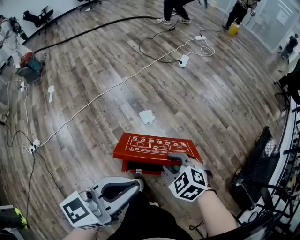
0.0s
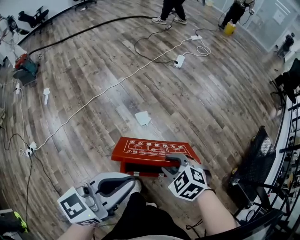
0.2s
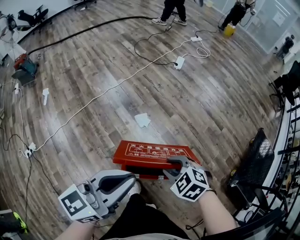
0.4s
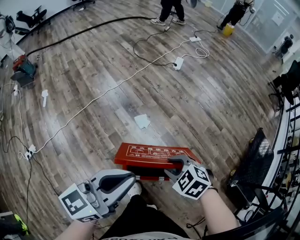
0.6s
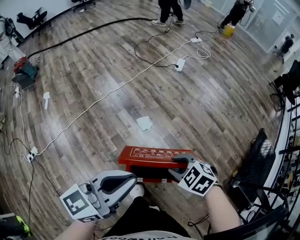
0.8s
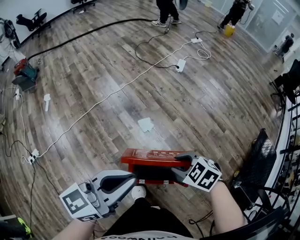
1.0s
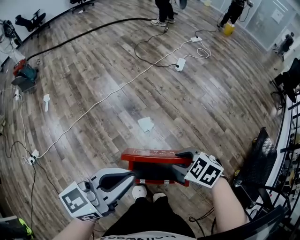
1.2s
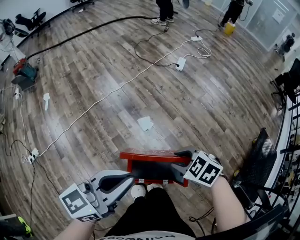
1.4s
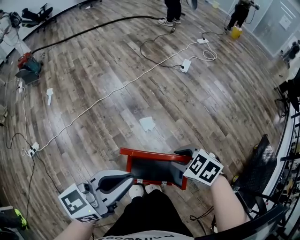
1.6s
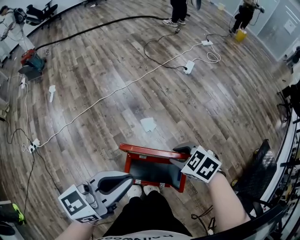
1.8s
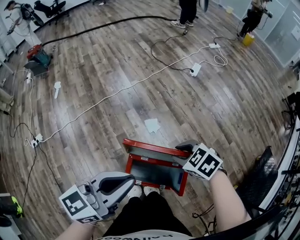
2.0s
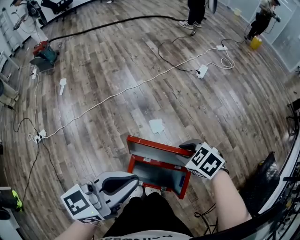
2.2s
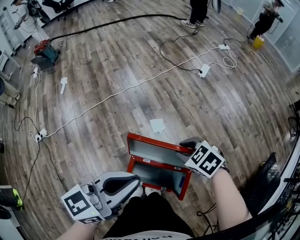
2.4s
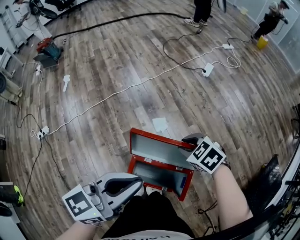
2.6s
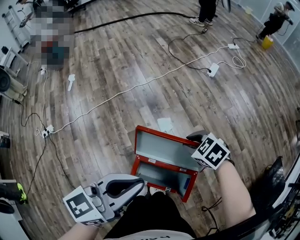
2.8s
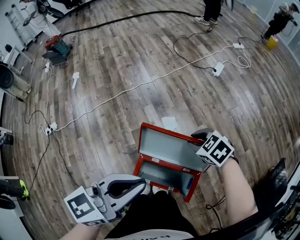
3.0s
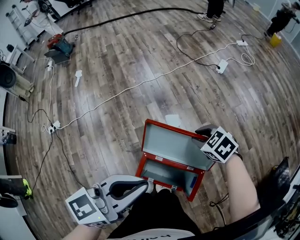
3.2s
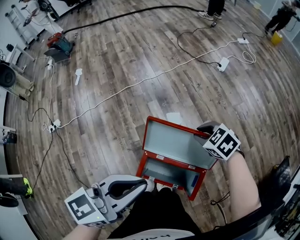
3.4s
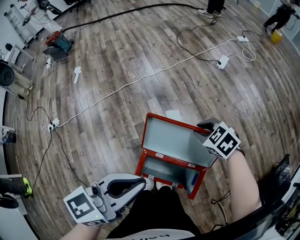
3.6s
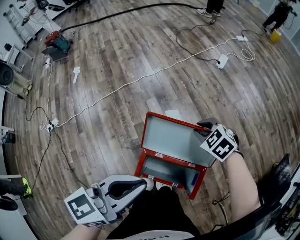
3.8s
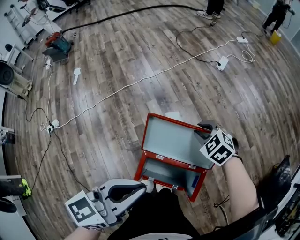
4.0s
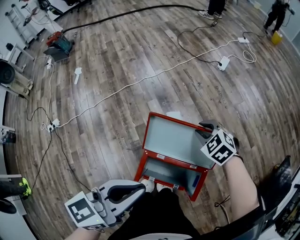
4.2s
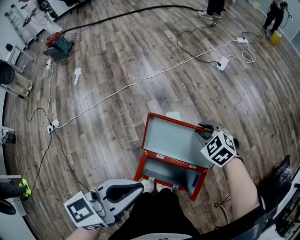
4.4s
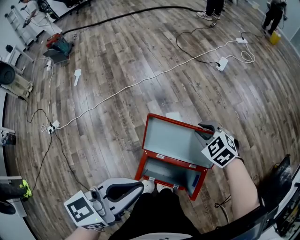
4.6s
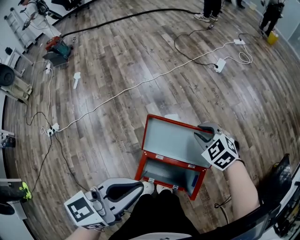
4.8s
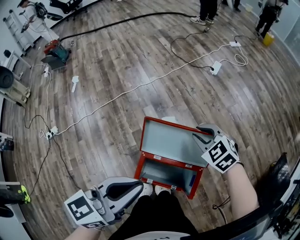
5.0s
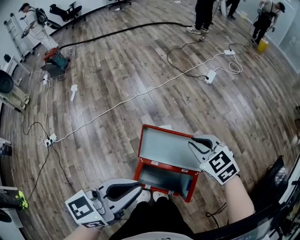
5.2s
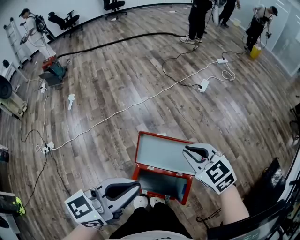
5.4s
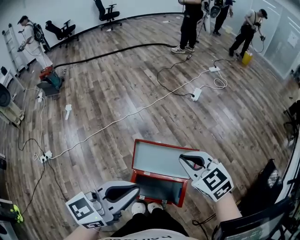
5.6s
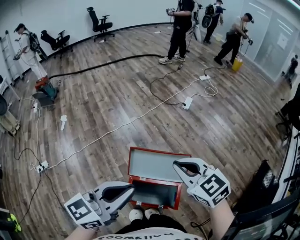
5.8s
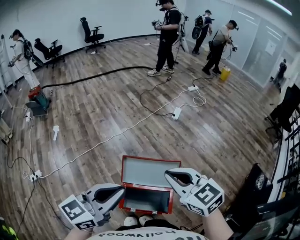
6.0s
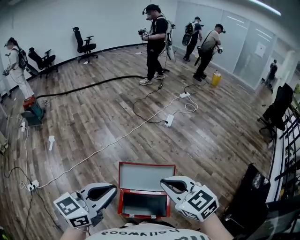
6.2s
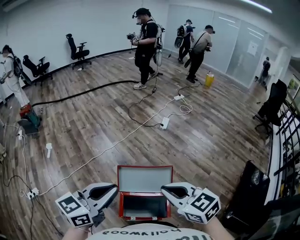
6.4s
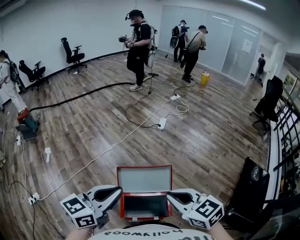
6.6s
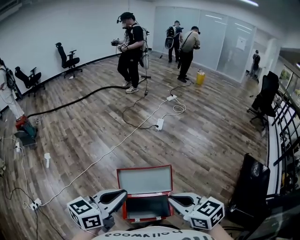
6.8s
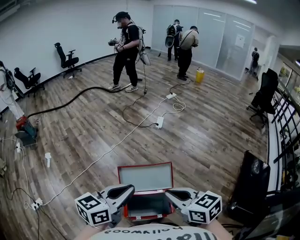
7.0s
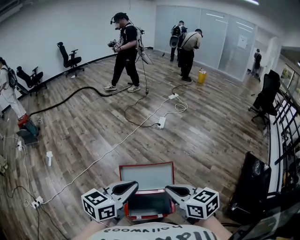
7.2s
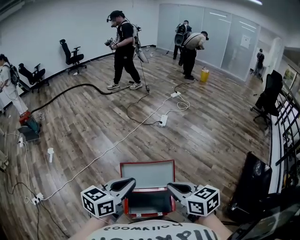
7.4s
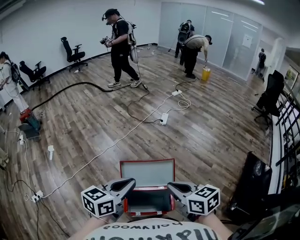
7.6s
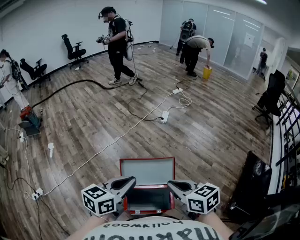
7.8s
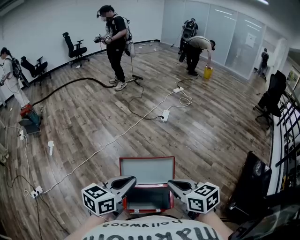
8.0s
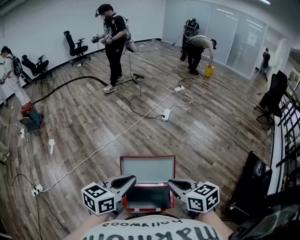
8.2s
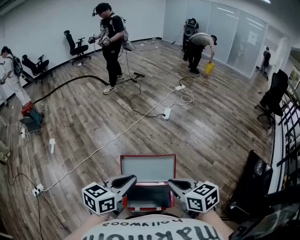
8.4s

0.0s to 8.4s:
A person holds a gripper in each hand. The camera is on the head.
0.0s to 1.4s: Both grippers move forward, some 10 cm.
1.4s to 2.8s: The right gripper goes roughly 15 cm forward.
2.8s to 4.2s: The left gripper shifts by some 5 cm; the right gripper moves about 5 cm.
4.2s to 5.6s: The left gripper travels upward by approximately 10 cm. The right gripper is displaced upward and backward by roughly 25 cm, and changes its angle by some 30 degrees.
5.6s to 7.0s: The right gripper shifts about 15 cm backward and upward, and swivels roughly 30 degrees.
7.0s to 8.4s: The right gripper changes place by approximately 5 cm.

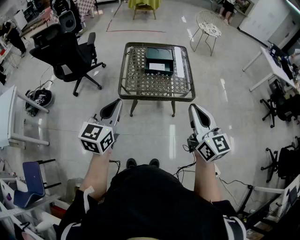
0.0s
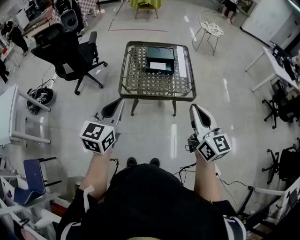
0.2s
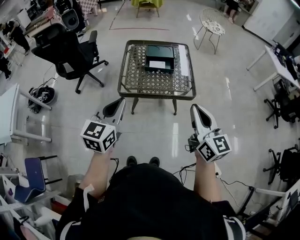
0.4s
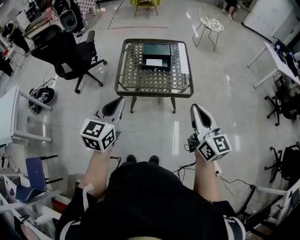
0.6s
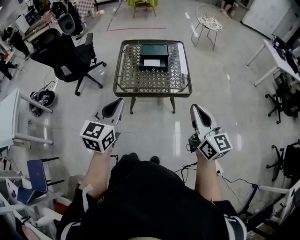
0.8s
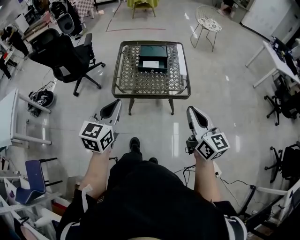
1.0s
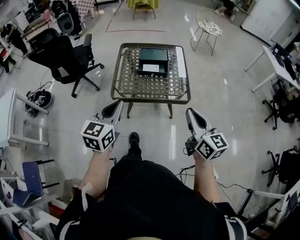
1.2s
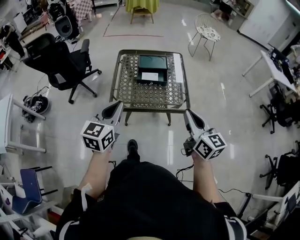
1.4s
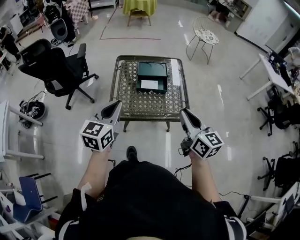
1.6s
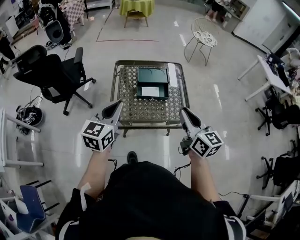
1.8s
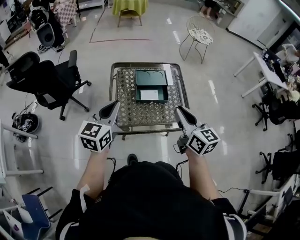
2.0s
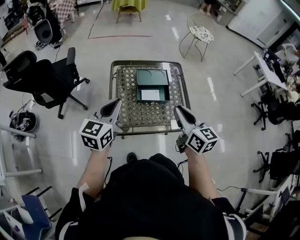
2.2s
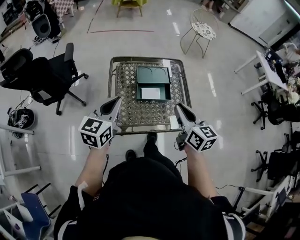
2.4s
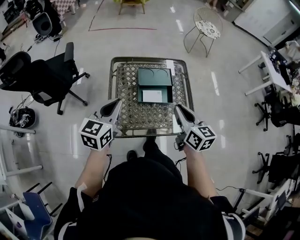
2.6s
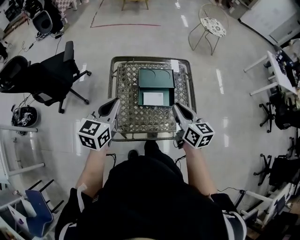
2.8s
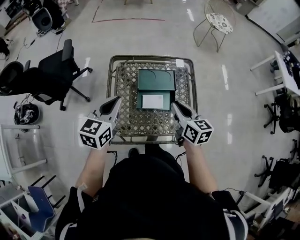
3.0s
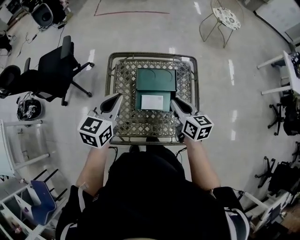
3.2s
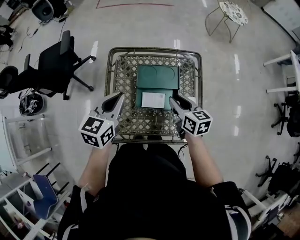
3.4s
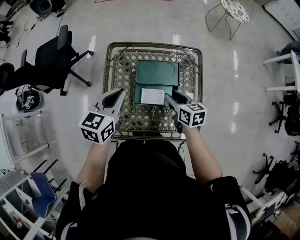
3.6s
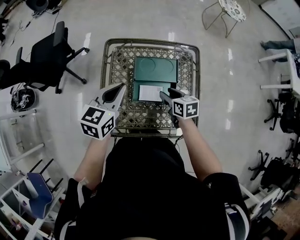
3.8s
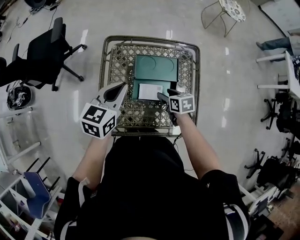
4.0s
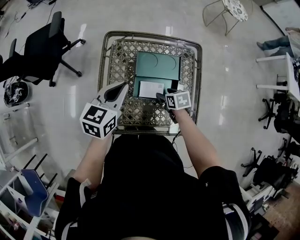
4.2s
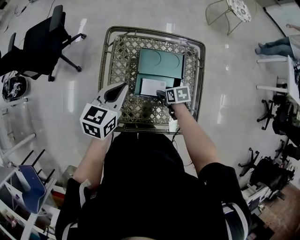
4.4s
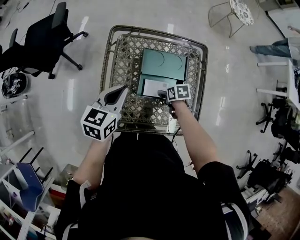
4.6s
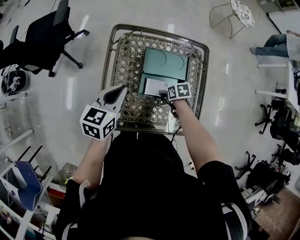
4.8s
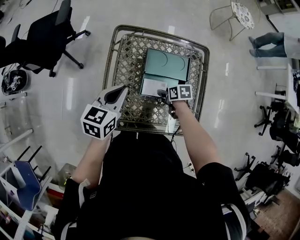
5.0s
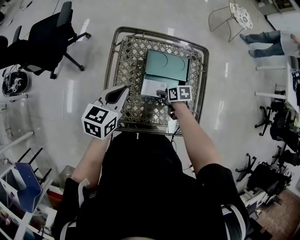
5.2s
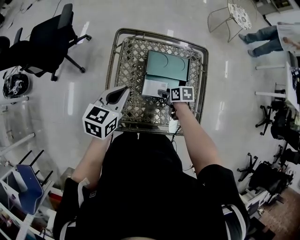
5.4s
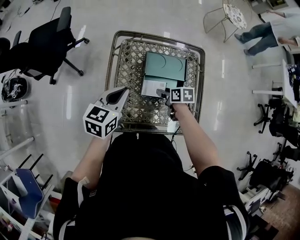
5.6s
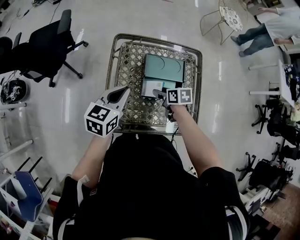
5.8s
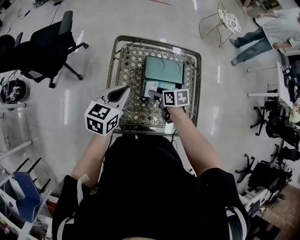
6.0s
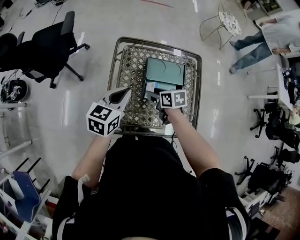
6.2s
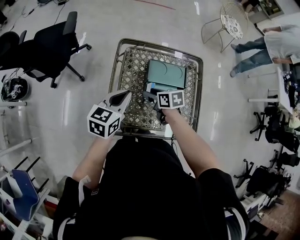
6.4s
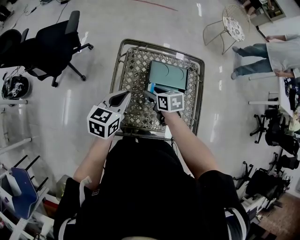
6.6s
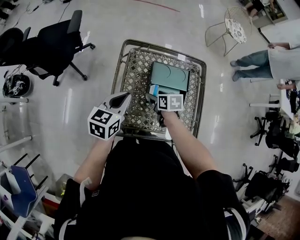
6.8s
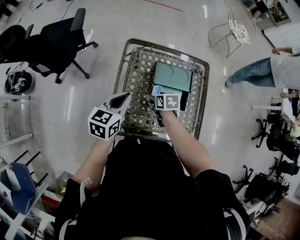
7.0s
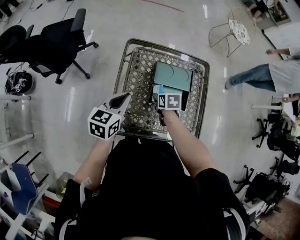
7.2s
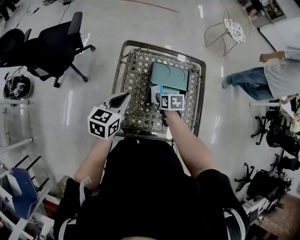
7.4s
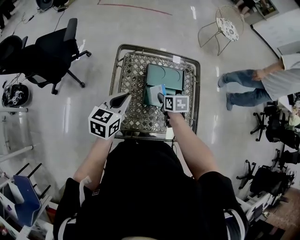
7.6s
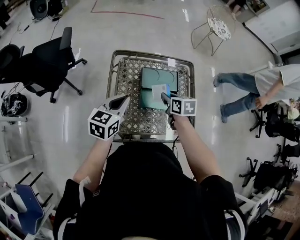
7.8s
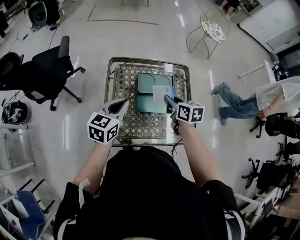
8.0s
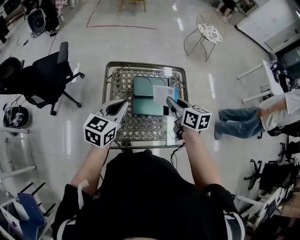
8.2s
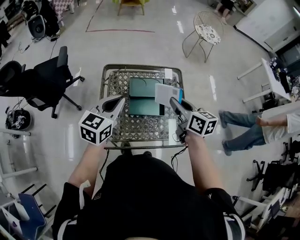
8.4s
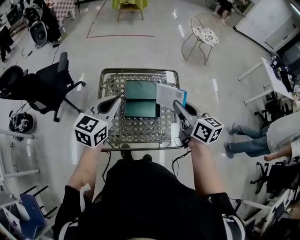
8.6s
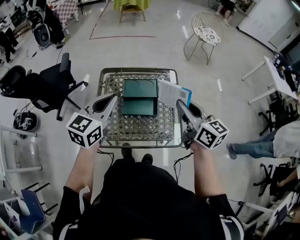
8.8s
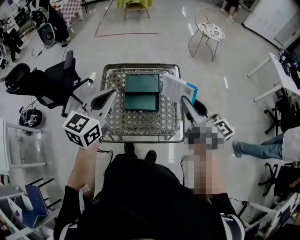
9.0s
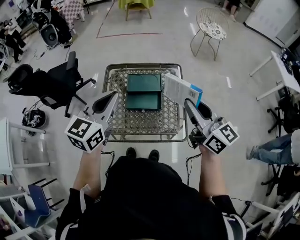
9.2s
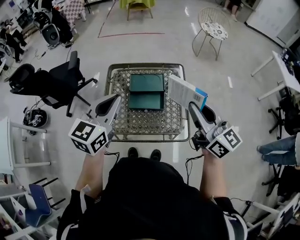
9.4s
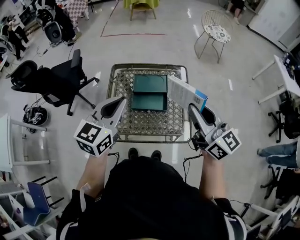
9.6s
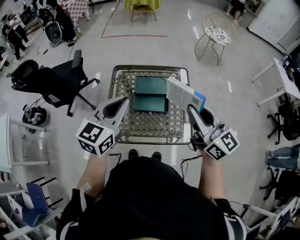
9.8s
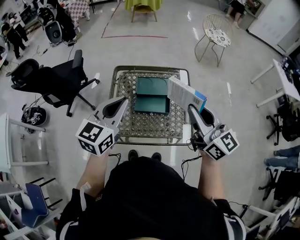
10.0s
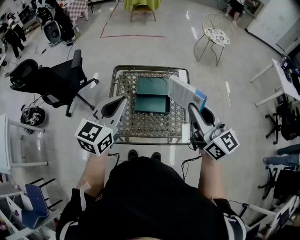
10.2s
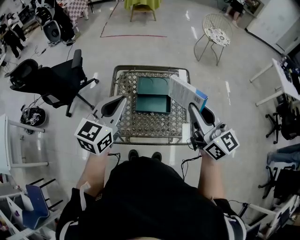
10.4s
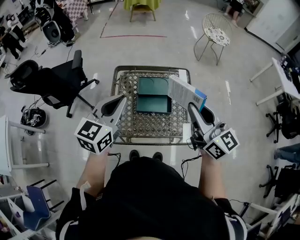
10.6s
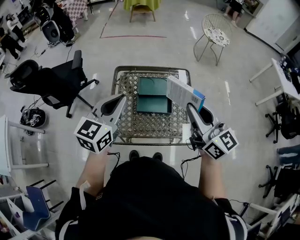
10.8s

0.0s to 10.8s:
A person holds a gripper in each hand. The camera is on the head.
0.0s to 1.6s: Both grippers move forward, roughly 15 cm.
1.6s to 3.0s: The right gripper goes some 30 cm forward and downward. The left gripper moves forward, some 25 cm.
3.0s to 4.6s: The right gripper moves downward, about 30 cm, points its fingers about 50 degrees further downward, and opens up. The left gripper goes some 10 cm downward.
4.6s to 6.2s: The right gripper travels upward and to the left by about 15 cm, and swivels some 20 degrees.
6.2s to 7.8s: The right gripper travels to the right and upward by roughly 10 cm, and closes up.
7.8s to 9.2s: The left gripper travels upward, to the right and backward by approximately 25 cm. The right gripper shifts approximately 40 cm upward, to the right and backward, and angles its fingers upward, by roughly 50 degrees.
9.2s to 10.8s: Both grippers travel together to the left, some 5 cm.

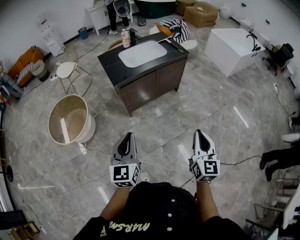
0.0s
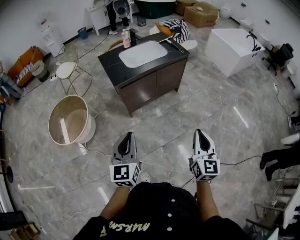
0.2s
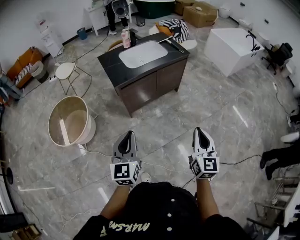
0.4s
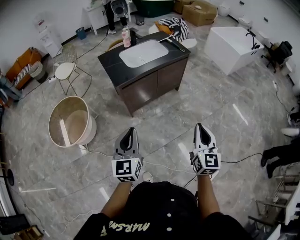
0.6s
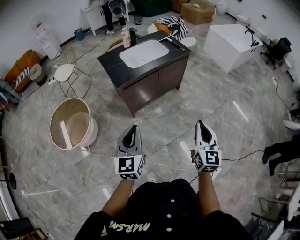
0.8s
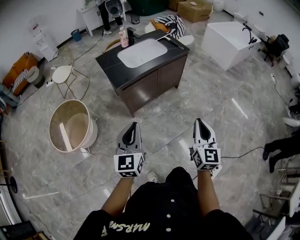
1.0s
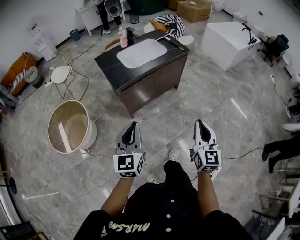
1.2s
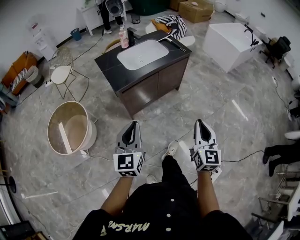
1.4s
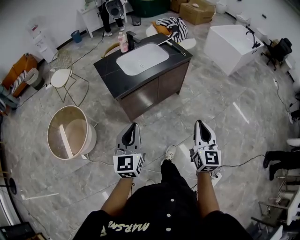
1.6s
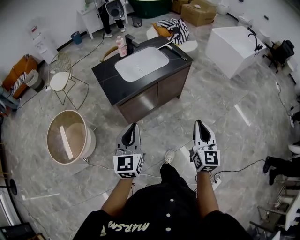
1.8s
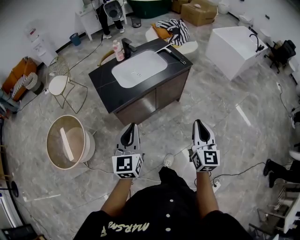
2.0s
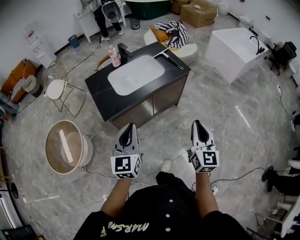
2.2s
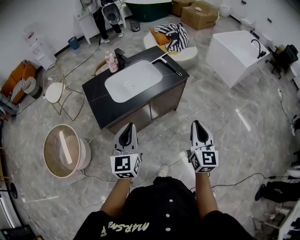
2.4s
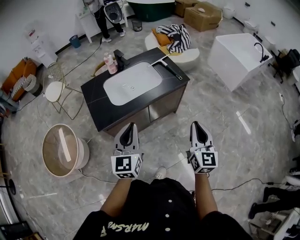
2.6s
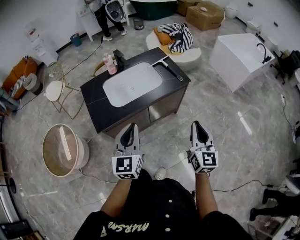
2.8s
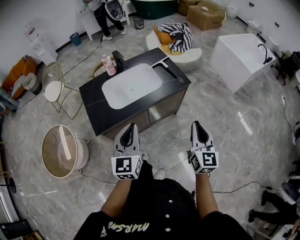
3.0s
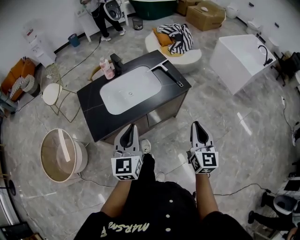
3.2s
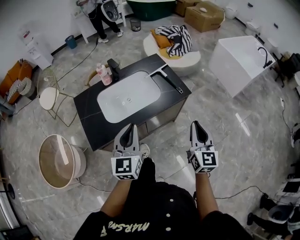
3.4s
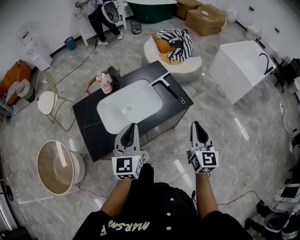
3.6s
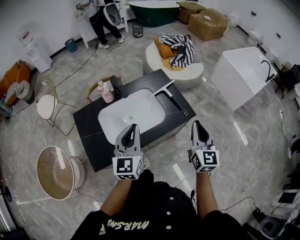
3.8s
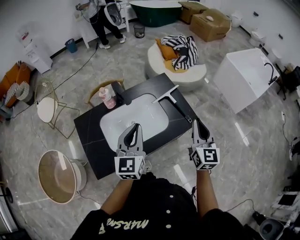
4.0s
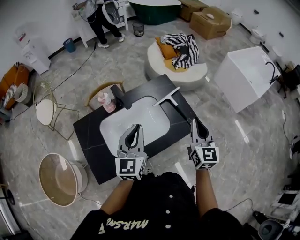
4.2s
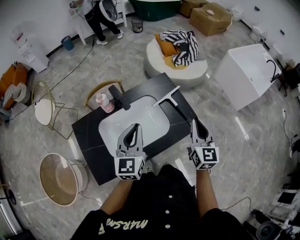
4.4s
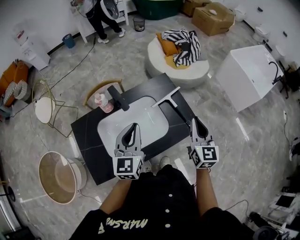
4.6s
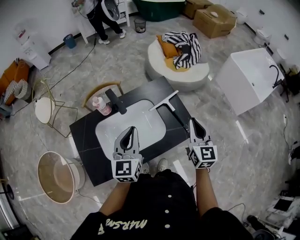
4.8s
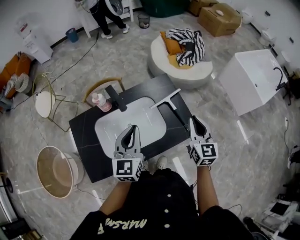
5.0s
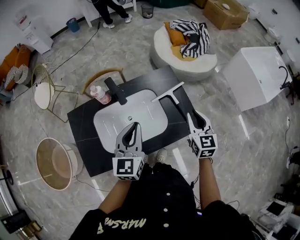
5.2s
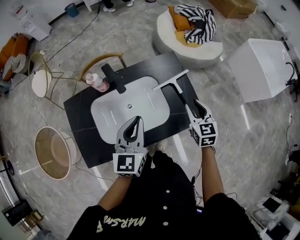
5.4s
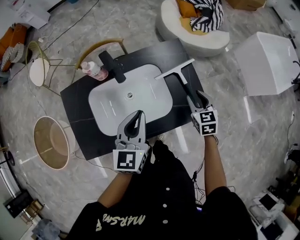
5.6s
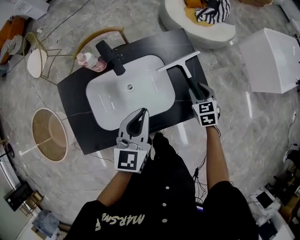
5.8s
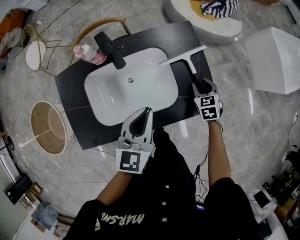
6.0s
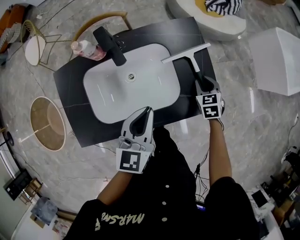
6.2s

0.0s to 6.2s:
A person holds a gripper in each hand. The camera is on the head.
0.0s to 1.6s: Both grippers move forward, some 15 cm.
1.6s to 3.2s: The grippers both shift forward by roughly 35 cm.
3.2s to 4.6s: The grippers both shift forward by approximately 35 cm.
4.6s to 6.2s: The right gripper moves downward and forward, roughly 35 cm, tilts its fingers approximately 40 degrees downward, and opens up, while the left gripper moves downward and to the right, about 15 cm.
